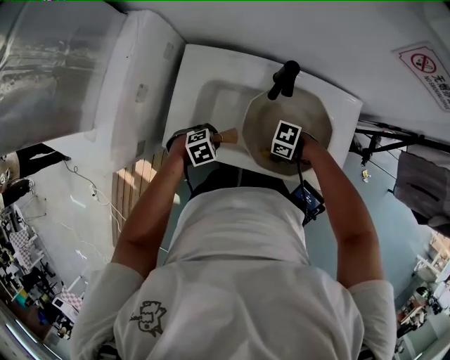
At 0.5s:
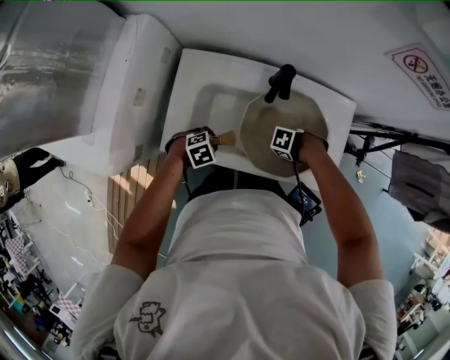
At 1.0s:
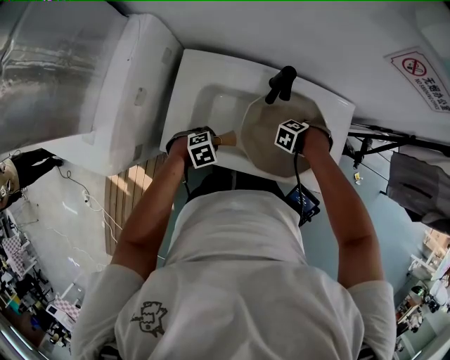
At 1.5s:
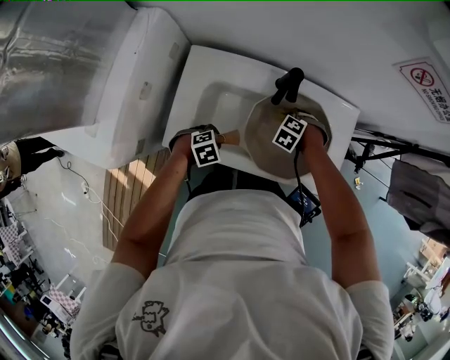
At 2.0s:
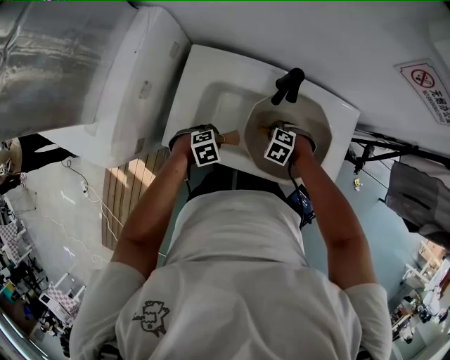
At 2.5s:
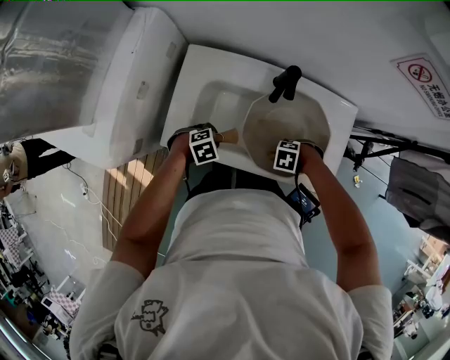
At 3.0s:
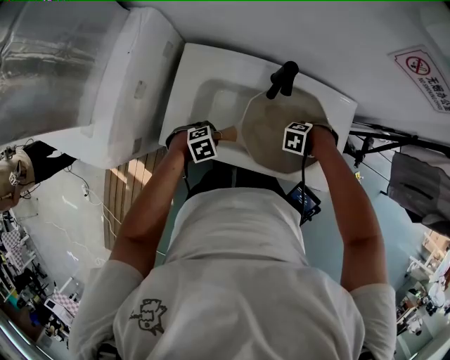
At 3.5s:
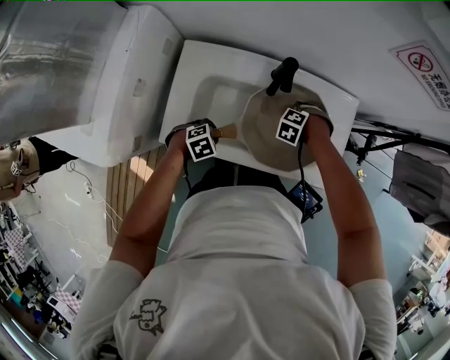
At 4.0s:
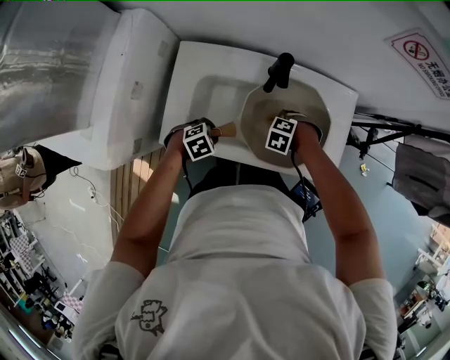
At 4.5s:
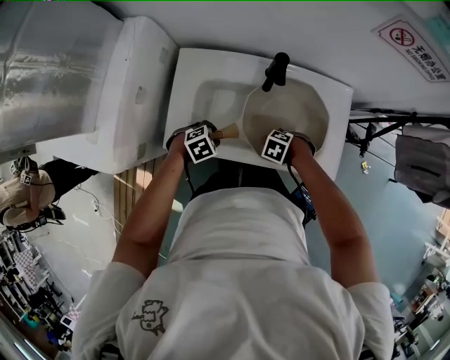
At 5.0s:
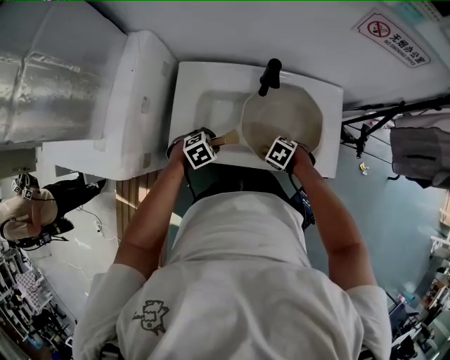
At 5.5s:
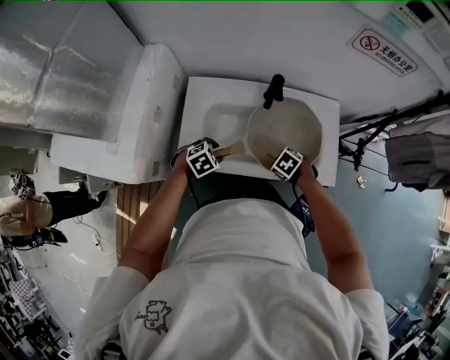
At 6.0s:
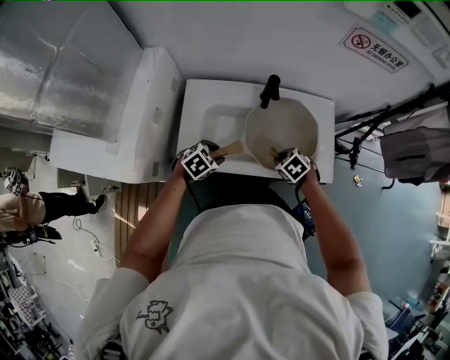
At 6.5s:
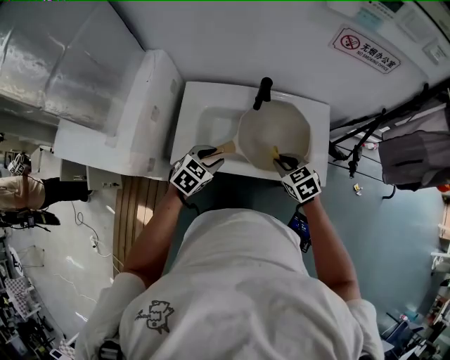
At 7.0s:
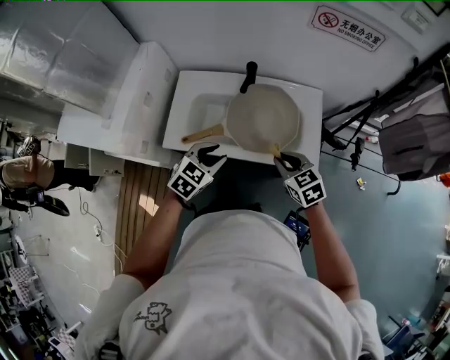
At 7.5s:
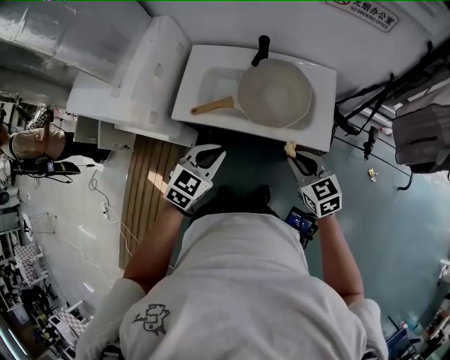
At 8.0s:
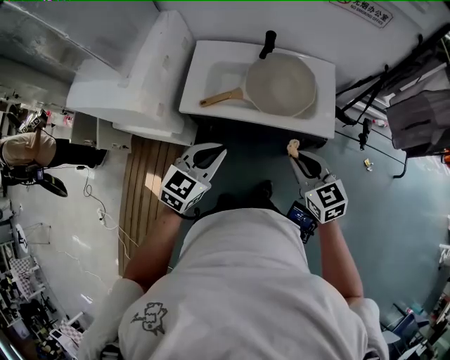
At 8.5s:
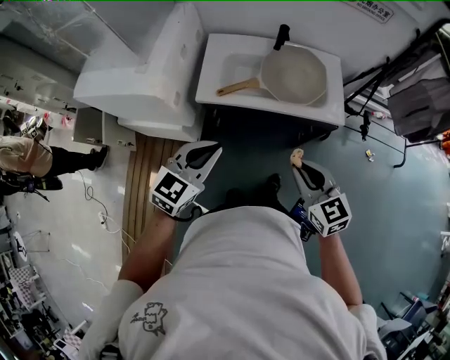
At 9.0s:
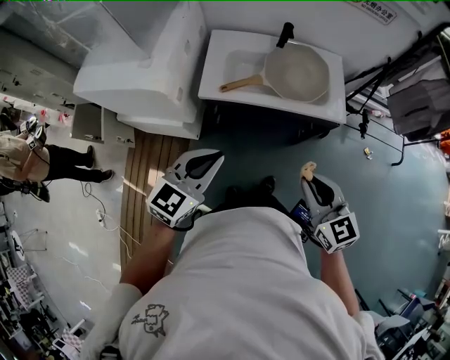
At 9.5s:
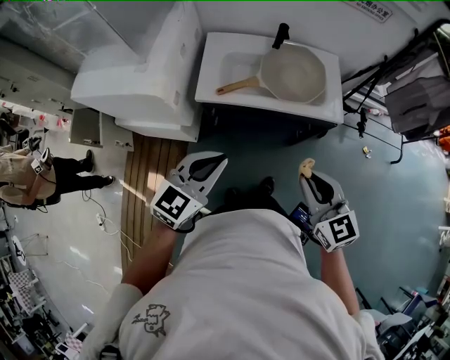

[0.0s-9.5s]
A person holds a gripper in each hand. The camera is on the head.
0.0s to 2.0s: The right gripper points its fingers roughly 30 degrees further downward.
4.0s to 5.5s: The right gripper changes place by about 10 cm, and turns by roughly 30 degrees; the left gripper heads upward, covering roughly 5 cm.
5.5s to 7.5s: The right gripper heads upward, covering approximately 20 cm, and angles its fingers upward, by some 40 degrees. Meanwhile the left gripper ends up approximately 30 cm from where it was, turns by approximately 40 degrees, and closes up.
7.5s to 9.5s: Both grippers move backward, to the left and upward, roughly 25 cm. The left gripper swivels some 20 degrees.

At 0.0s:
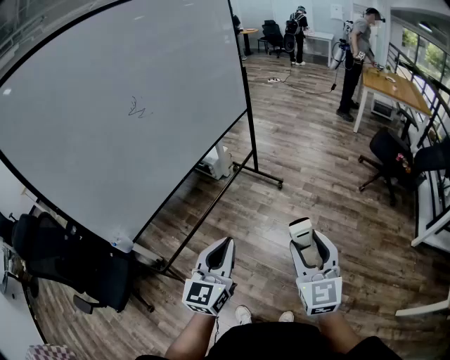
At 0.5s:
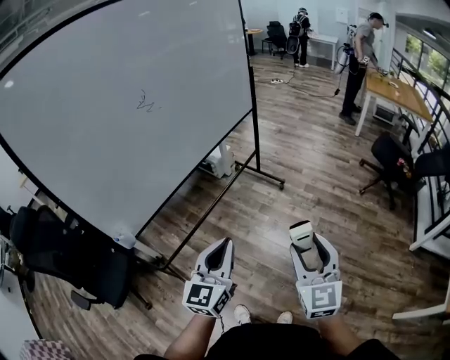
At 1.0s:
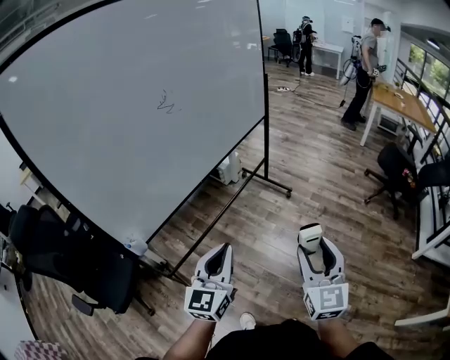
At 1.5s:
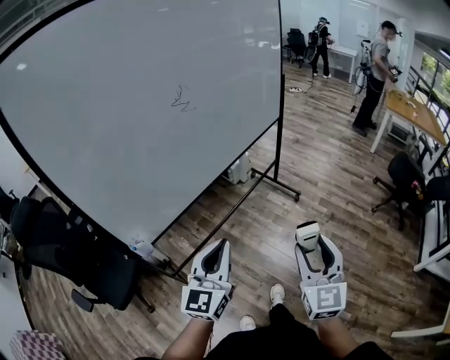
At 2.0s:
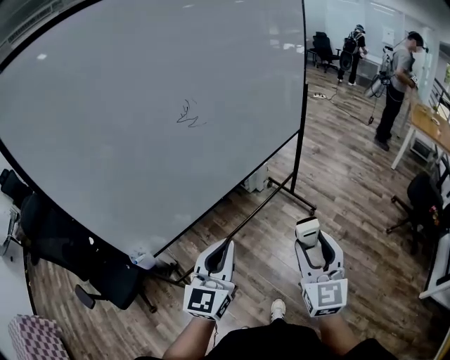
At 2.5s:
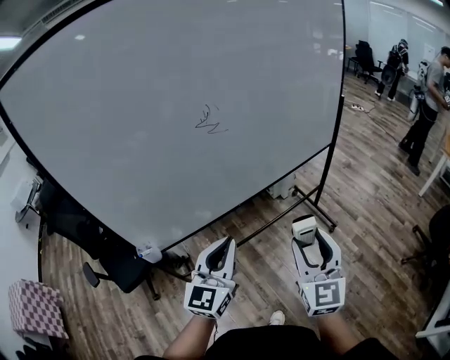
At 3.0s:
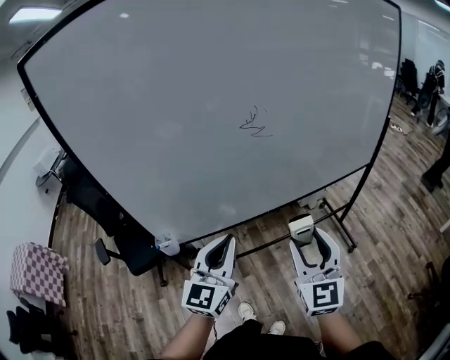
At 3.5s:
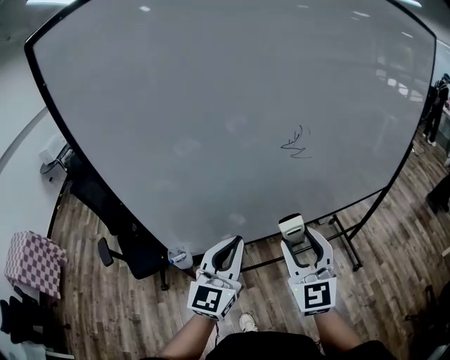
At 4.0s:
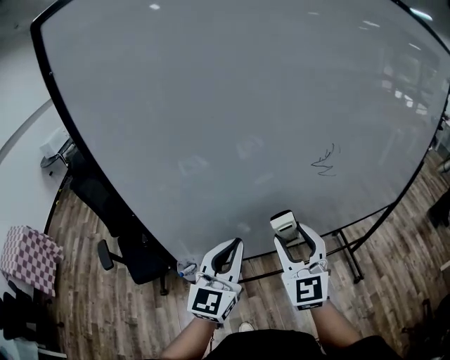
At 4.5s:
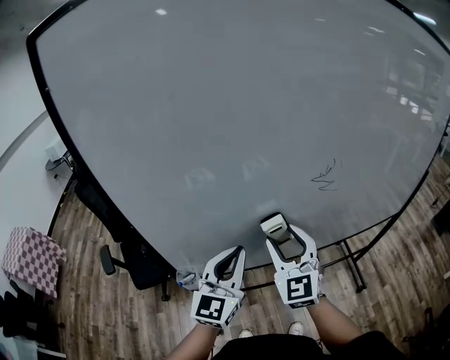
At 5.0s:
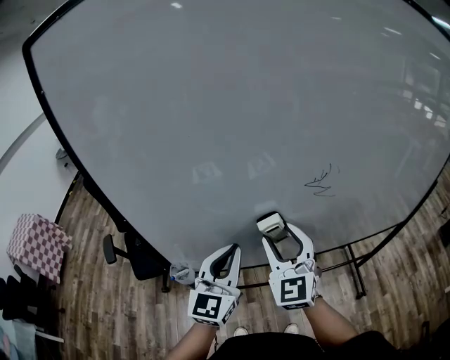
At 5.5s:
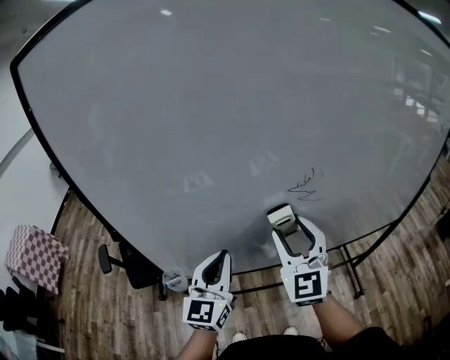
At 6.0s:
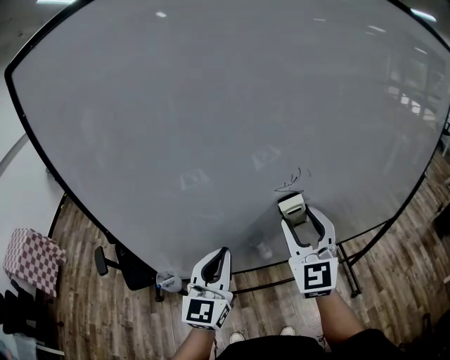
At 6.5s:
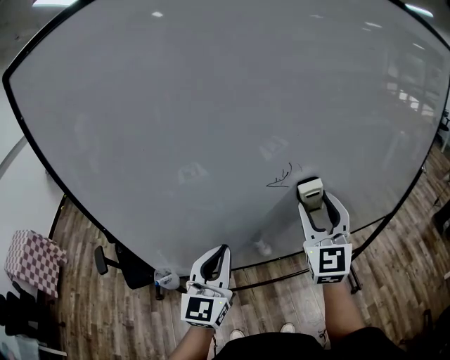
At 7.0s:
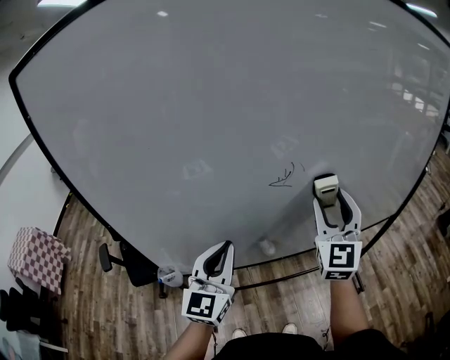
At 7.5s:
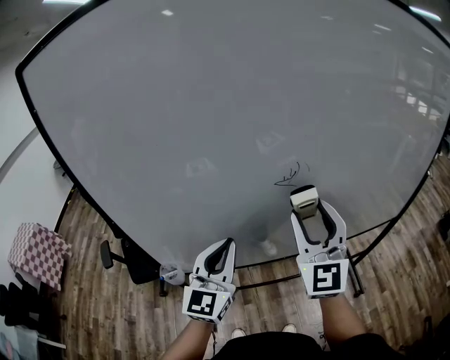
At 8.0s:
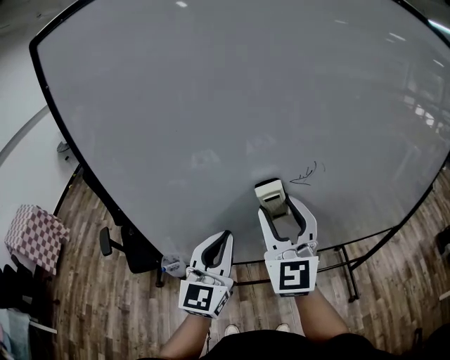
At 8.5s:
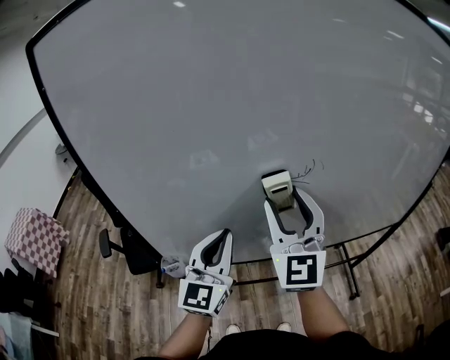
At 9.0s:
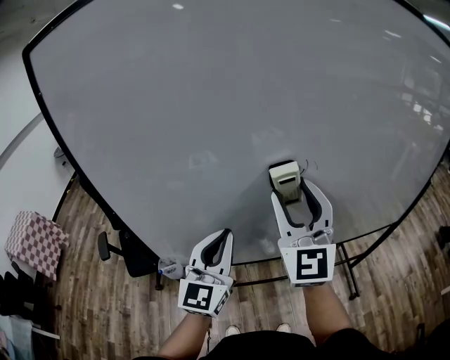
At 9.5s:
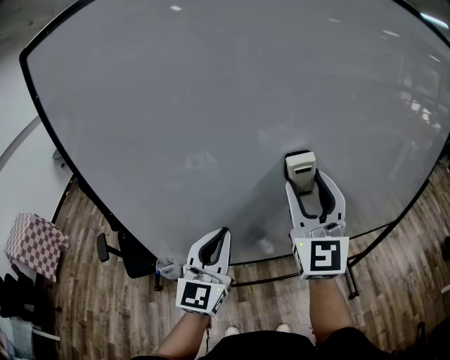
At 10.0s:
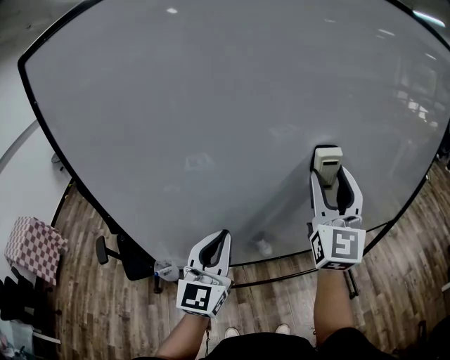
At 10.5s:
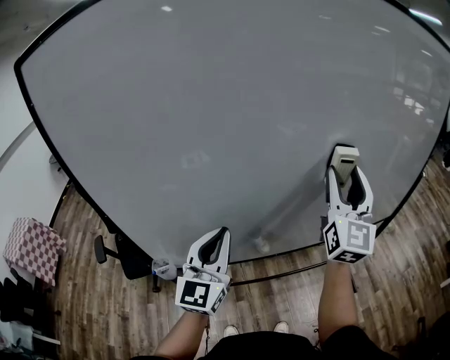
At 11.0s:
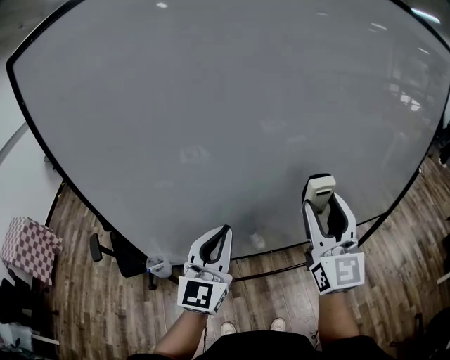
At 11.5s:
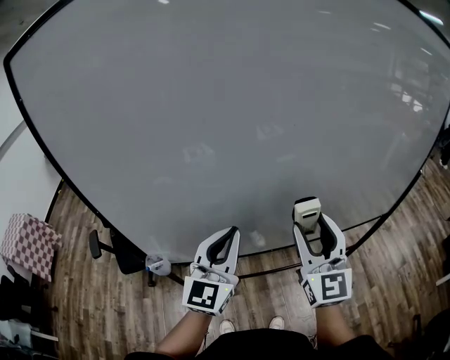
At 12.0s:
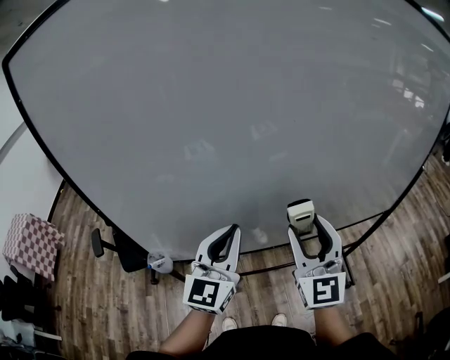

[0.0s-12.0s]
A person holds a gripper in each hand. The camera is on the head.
0.0s to 2.0s: The right gripper shifts some 25 cm forward and to the left; the left gripper shifts some 20 cm to the left and forward.
2.0s to 4.0s: The right gripper ends up about 40 cm from where it was, and turns by roughly 40 degrees, while the left gripper changes place by about 25 cm, and rotates about 30 degrees.
4.0s to 6.0s: The left gripper travels to the right by roughly 5 cm. Meanwhile the right gripper heads to the right, upward and forward, covering roughly 15 cm.
6.0s to 8.0s: The right gripper heads to the left, covering roughly 10 cm.
8.0s to 10.0s: The right gripper goes roughly 15 cm to the right and upward, and changes its angle by approximately 20 degrees.
10.0s to 12.0s: The right gripper travels downward and backward by some 15 cm.

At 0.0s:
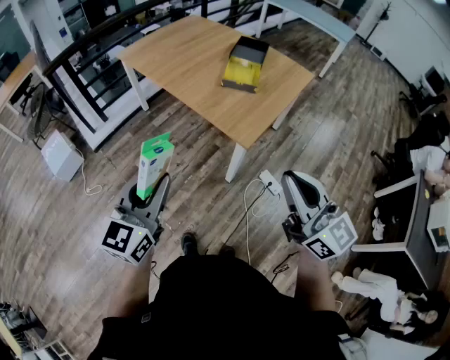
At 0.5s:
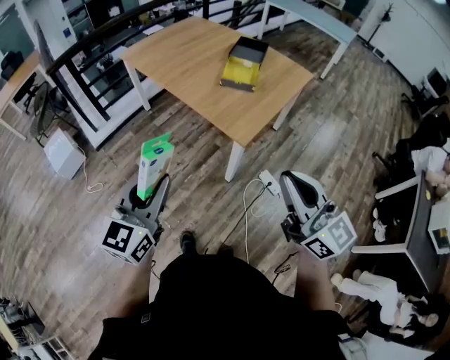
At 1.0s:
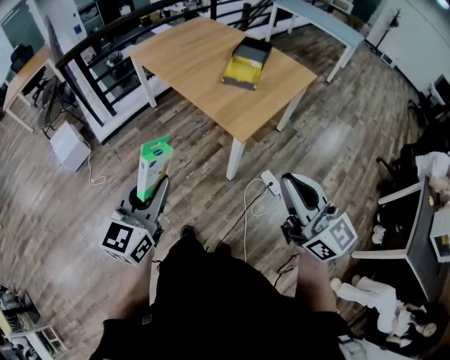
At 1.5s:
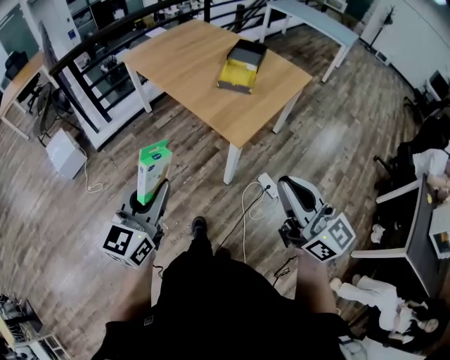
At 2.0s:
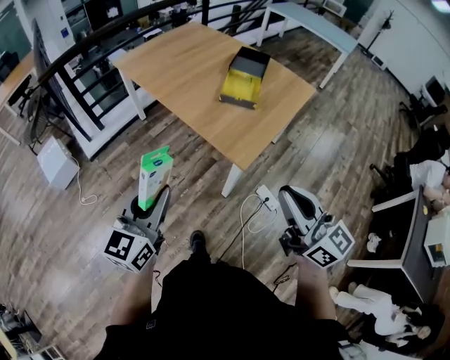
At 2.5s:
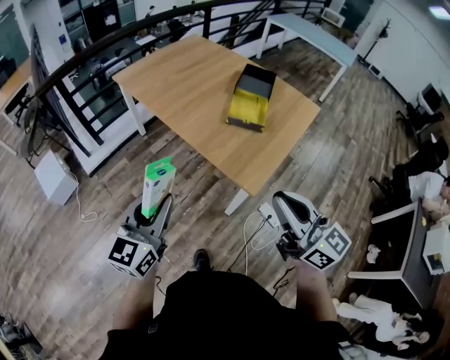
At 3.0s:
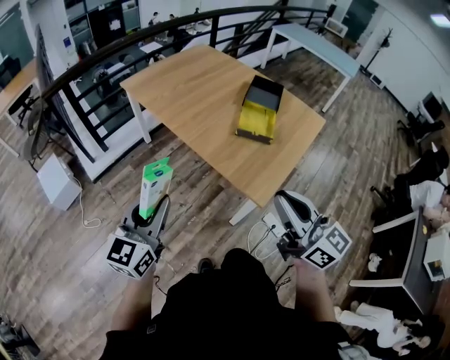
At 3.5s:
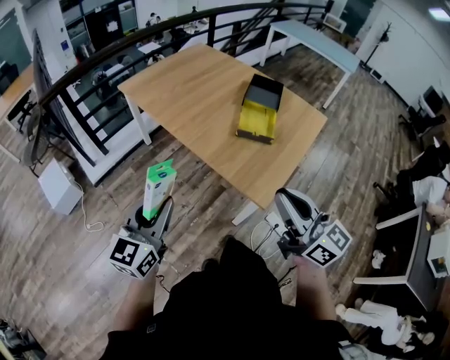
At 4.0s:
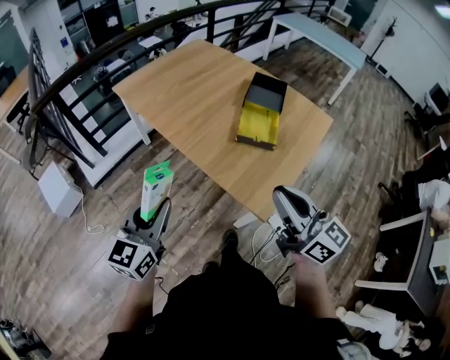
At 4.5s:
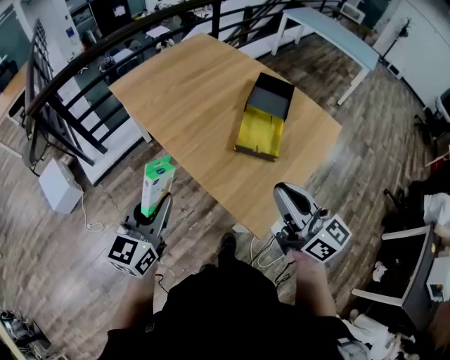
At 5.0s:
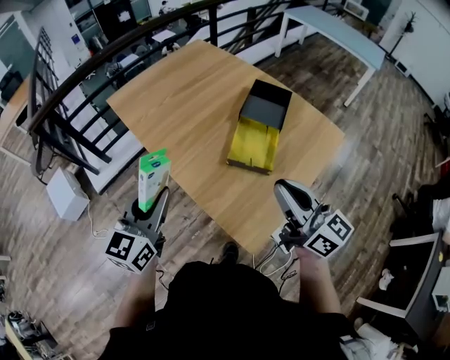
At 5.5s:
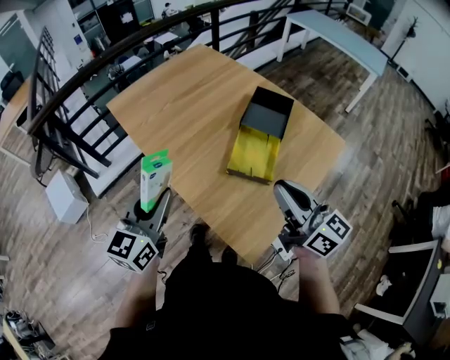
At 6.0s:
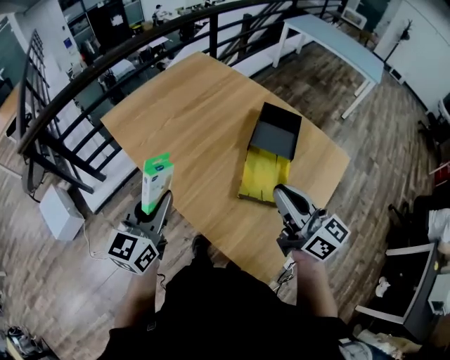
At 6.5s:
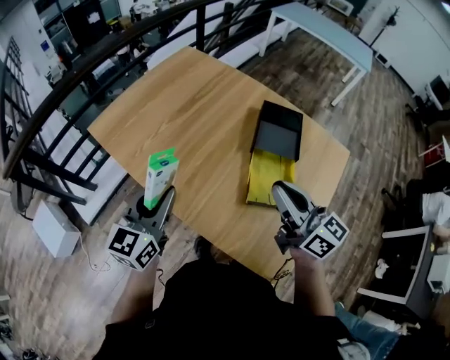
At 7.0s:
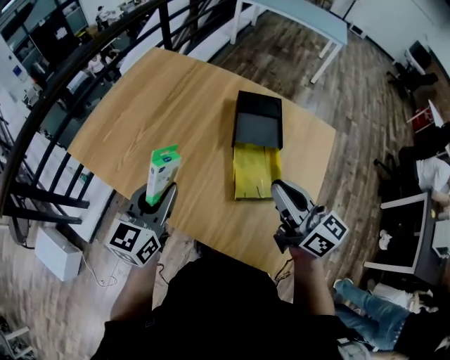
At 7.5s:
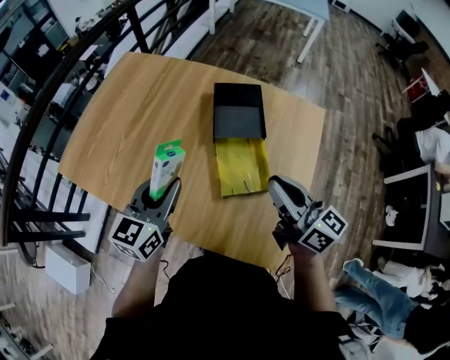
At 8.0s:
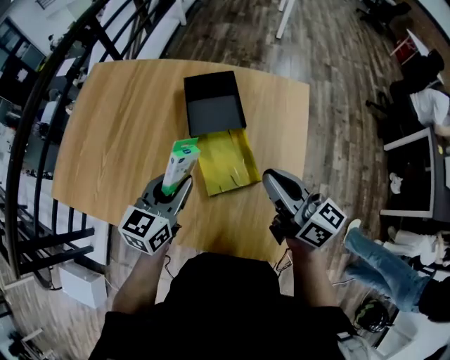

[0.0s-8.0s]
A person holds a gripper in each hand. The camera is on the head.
0.0s to 2.0s: Both grippers move forward, roughly 5 cm.
2.0s to 4.0s: The two grippers go roughly 20 cm forward.
4.0s to 6.0s: The two grippers go about 30 cm forward.
6.0s to 8.0s: The right gripper changes place by some 10 cm, and changes its angle by approximately 30 degrees. Meanwhile the left gripper ends up about 25 cm from where it was, and rotates roughly 40 degrees.
